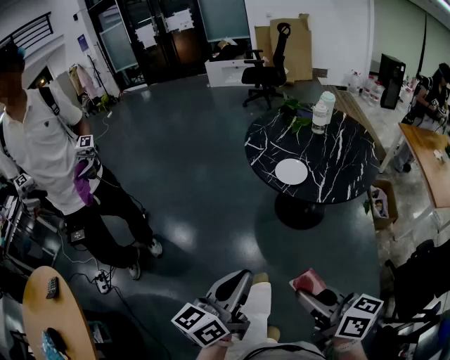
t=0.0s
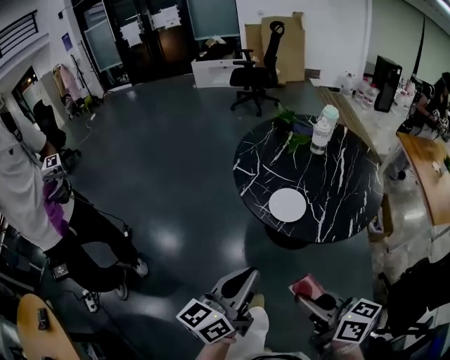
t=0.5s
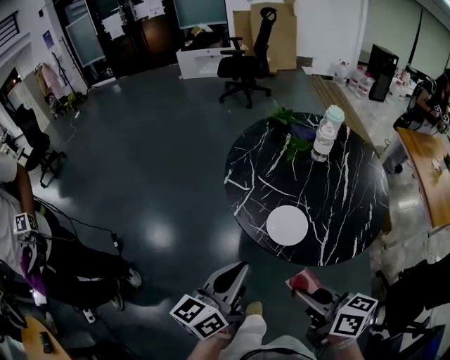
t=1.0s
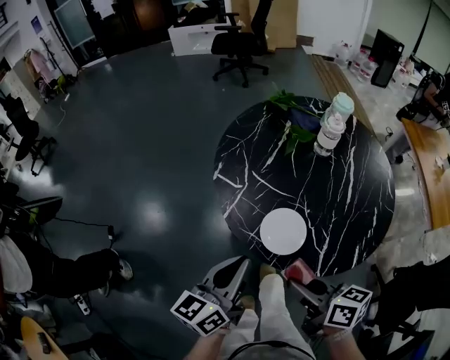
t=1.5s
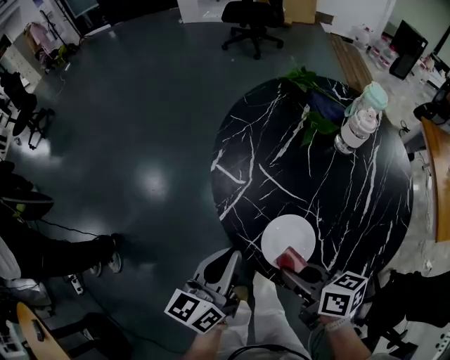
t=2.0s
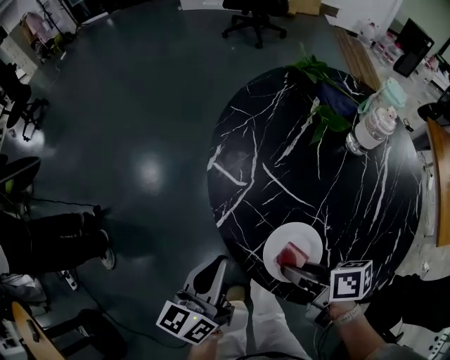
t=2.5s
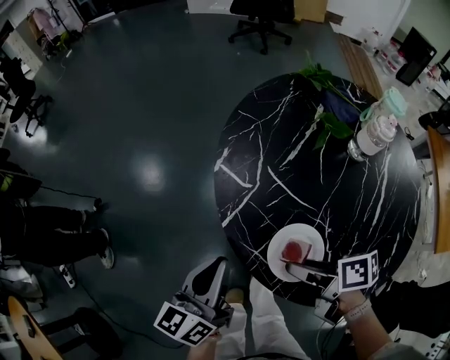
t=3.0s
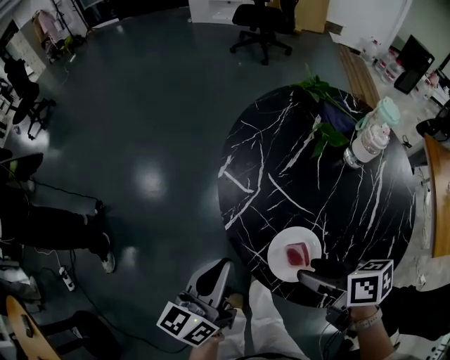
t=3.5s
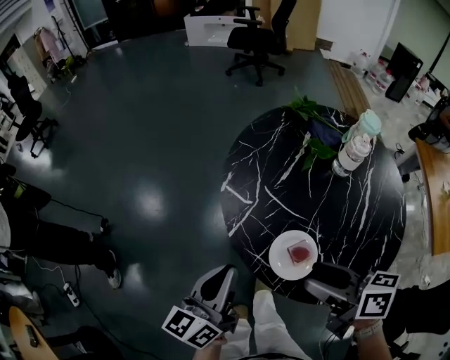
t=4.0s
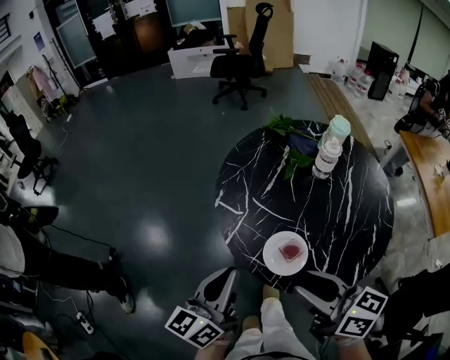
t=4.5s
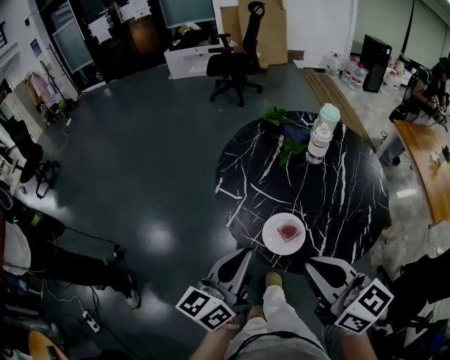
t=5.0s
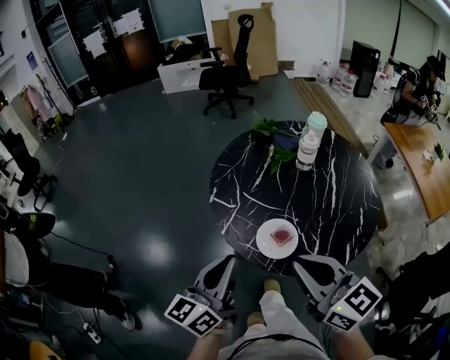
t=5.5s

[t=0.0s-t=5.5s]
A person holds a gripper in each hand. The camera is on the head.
t=0.0s to t=2.0s: Both grippers are carried forward, about 50 cm. The right gripper turns by about 20 degrees.
t=2.0s to t=3.5s: The right gripper opens its fingers.
t=3.5s to t=5.5s: The grippers both shift upward and backward by roughly 20 cm. The right gripper tips its fingers upward by roughly 30 degrees, and closes its fingers.

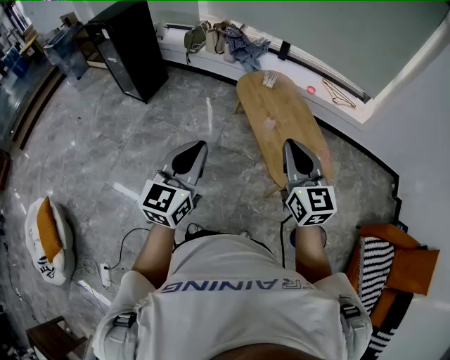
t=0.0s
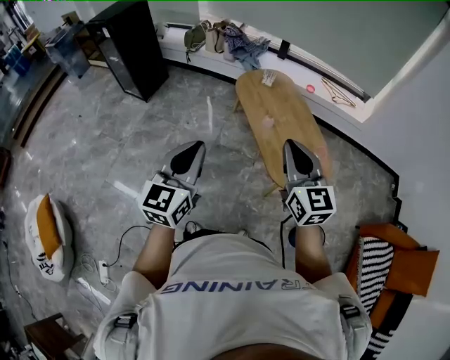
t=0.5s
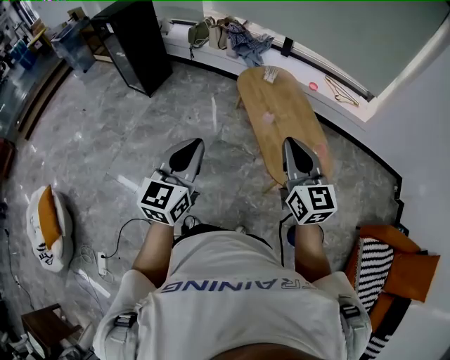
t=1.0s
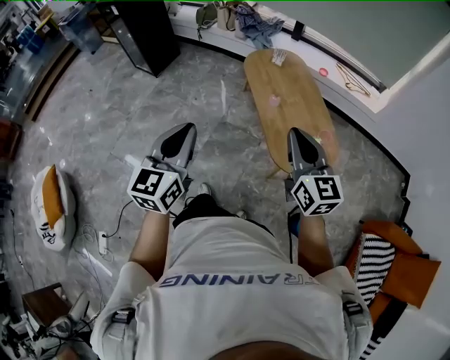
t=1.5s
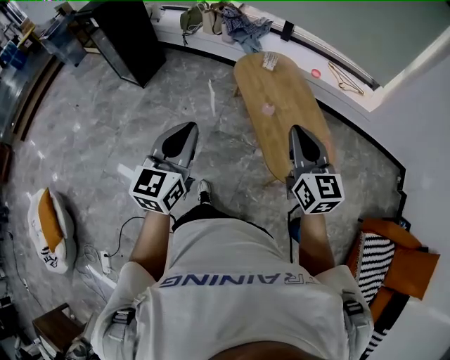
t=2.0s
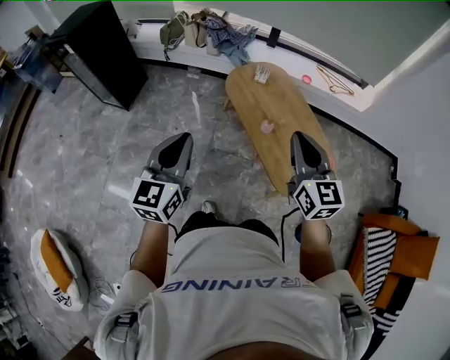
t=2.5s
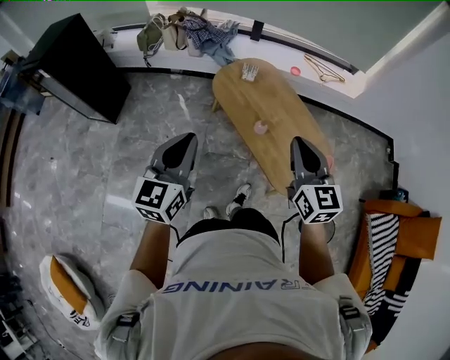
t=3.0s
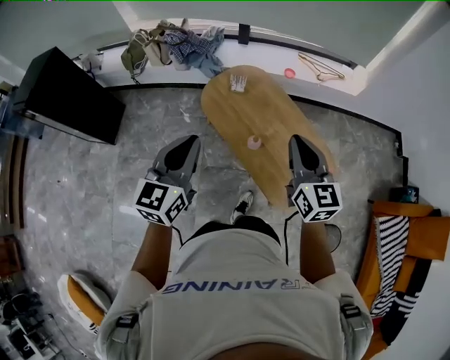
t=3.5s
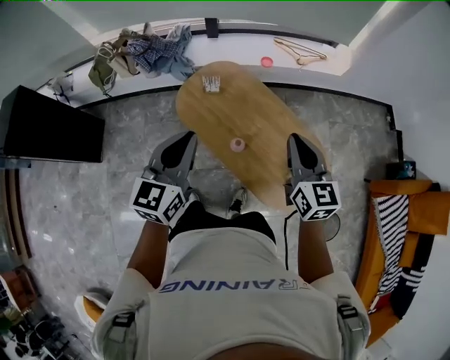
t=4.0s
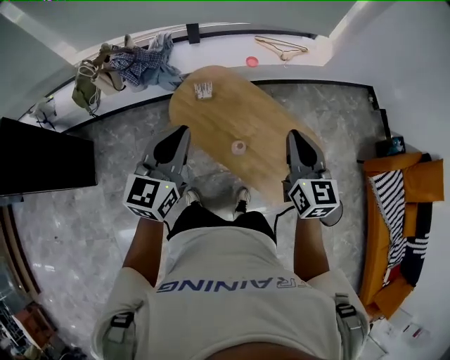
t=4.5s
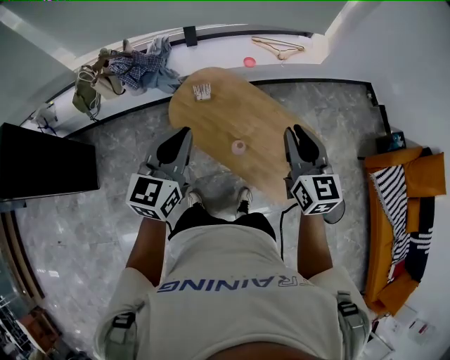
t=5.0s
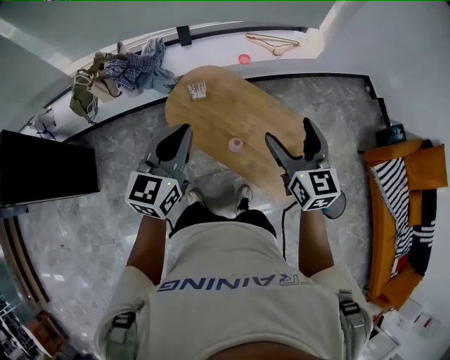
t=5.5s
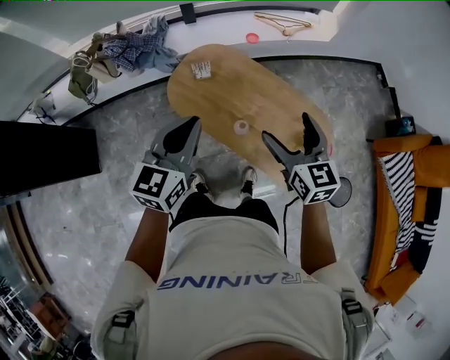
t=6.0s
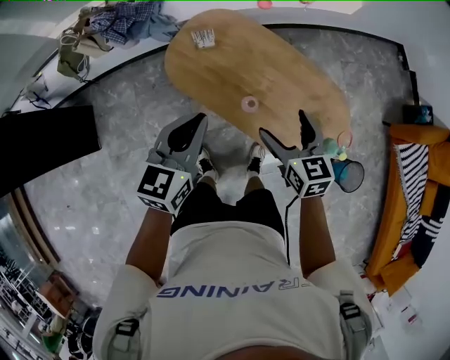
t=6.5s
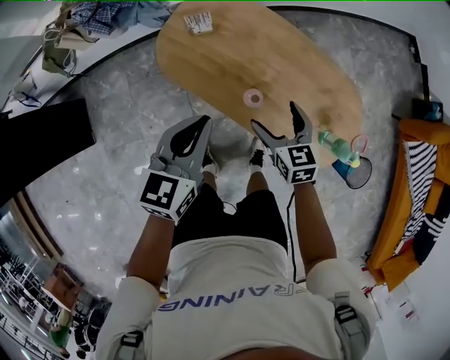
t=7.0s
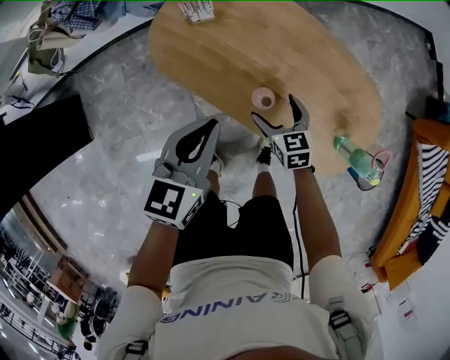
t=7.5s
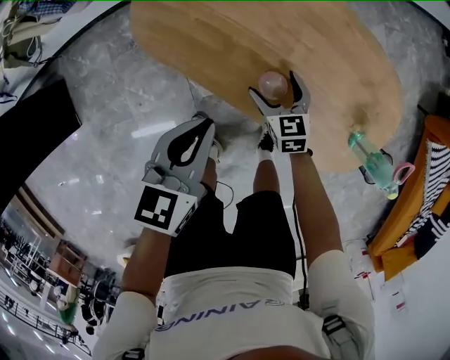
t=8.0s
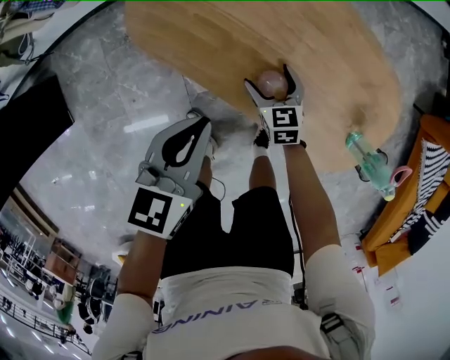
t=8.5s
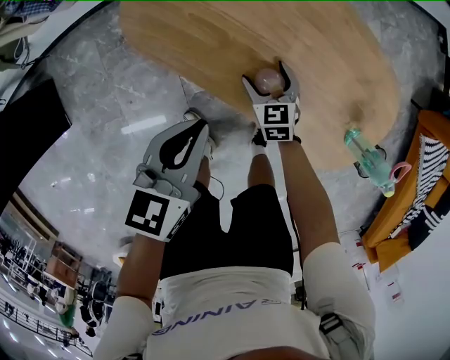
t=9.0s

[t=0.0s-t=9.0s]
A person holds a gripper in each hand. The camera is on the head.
t=0.0s to t=2.0s: The left gripper moves forward, roughly 5 cm. Meanwhile the right gripper is displaced forward and to the right by approximately 10 cm.
t=2.0s to t=4.5s: The left gripper ends up some 50 cm from where it was, and changes its angle by some 40 degrees. The right gripper ends up some 35 cm from where it was, and turns by roughly 40 degrees.
t=4.5s to t=7.0s: The right gripper is displaced downward by some 35 cm, swivels about 30 degrees, and opens its fingers, while the left gripper is displaced downward by approximately 20 cm, and turns by approximately 20 degrees.
t=7.0s to t=9.0s: The two grippers go roughly 25 cm downward.

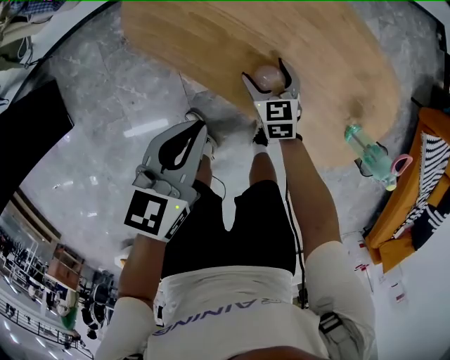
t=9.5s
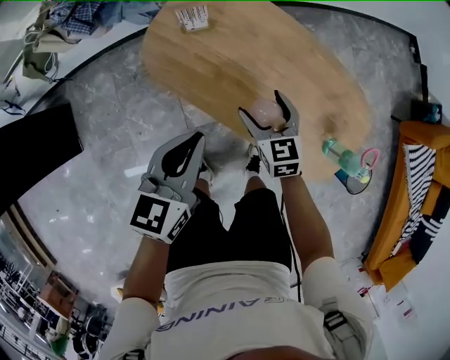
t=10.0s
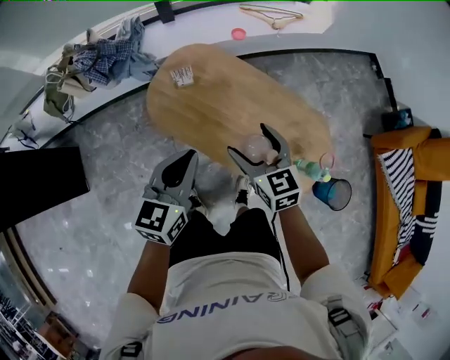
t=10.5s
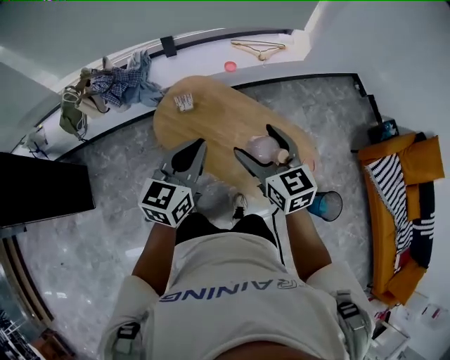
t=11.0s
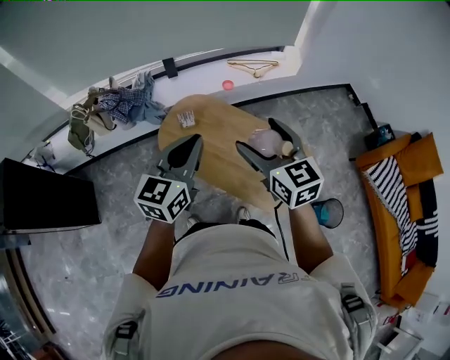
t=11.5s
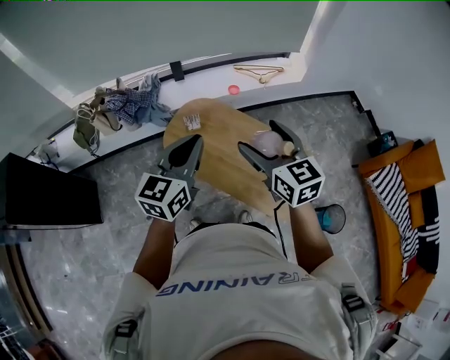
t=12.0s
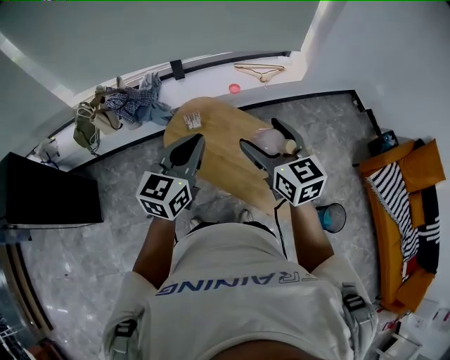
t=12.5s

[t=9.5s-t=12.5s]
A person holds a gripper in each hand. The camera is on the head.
t=9.5s to t=11.0s: The left gripper goes roughly 35 cm upward, and swivels about 30 degrees, while the right gripper heads upward, covering about 60 cm, and turns by roughly 30 degrees.
t=11.0s to t=12.5s: Both grippers travel together upward, approximately 10 cm.

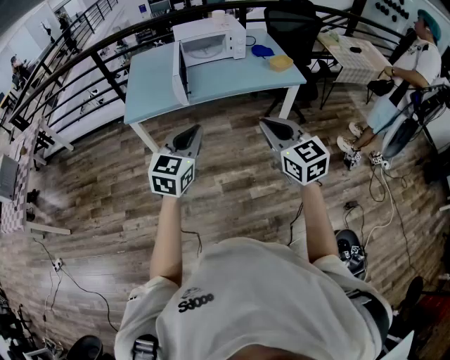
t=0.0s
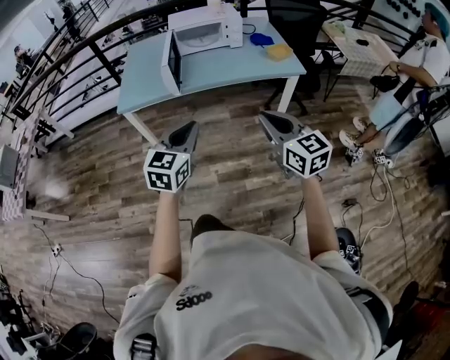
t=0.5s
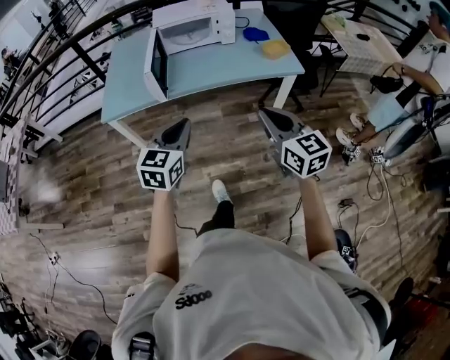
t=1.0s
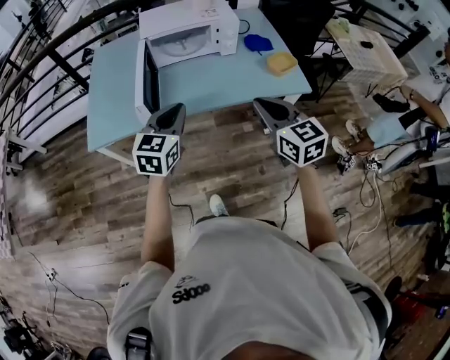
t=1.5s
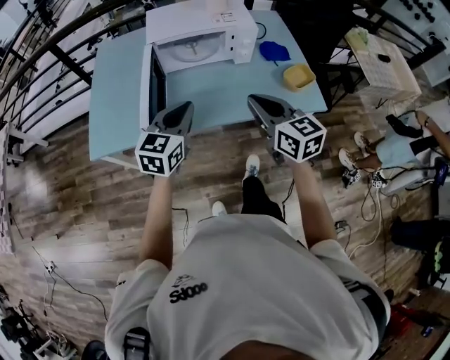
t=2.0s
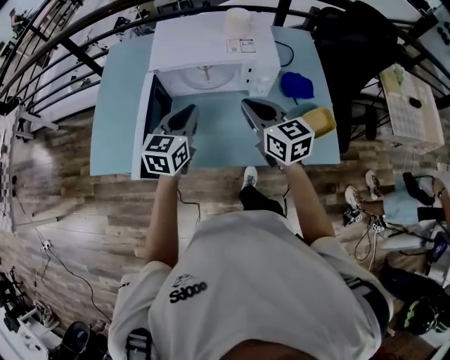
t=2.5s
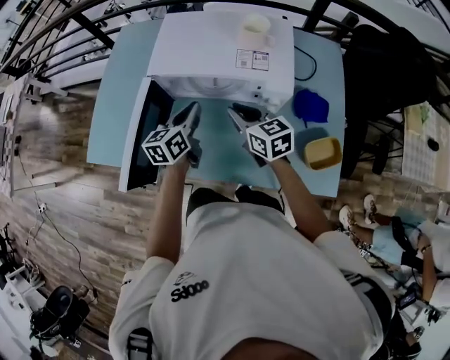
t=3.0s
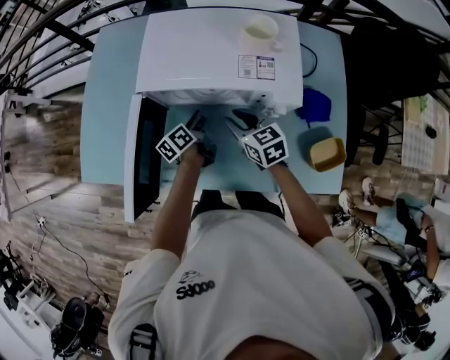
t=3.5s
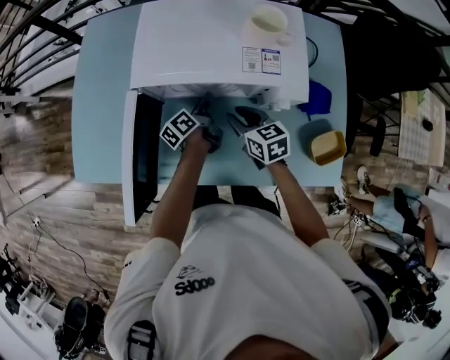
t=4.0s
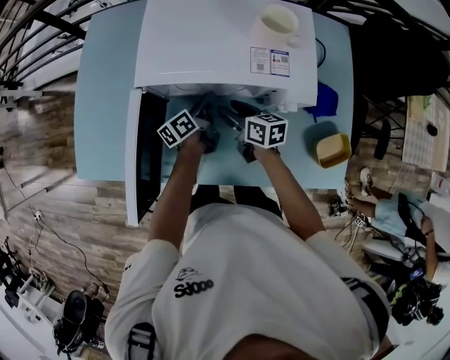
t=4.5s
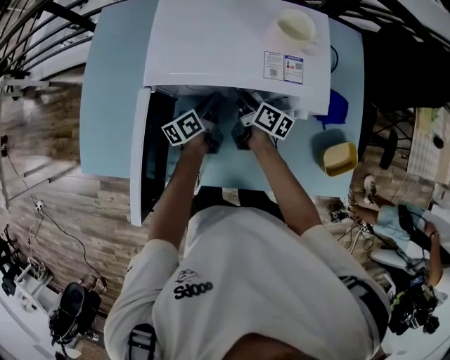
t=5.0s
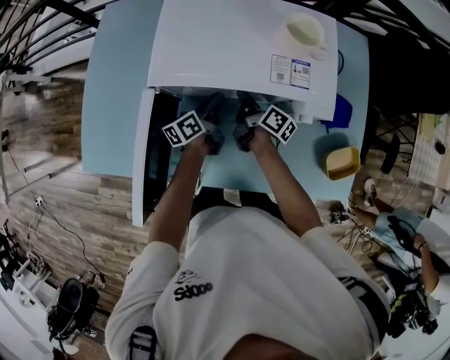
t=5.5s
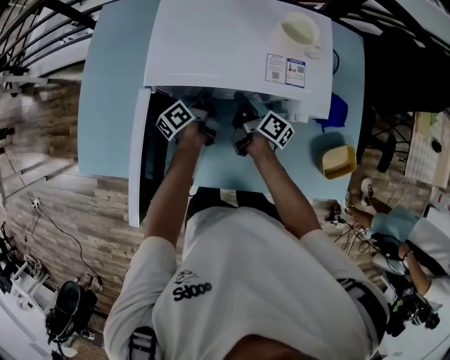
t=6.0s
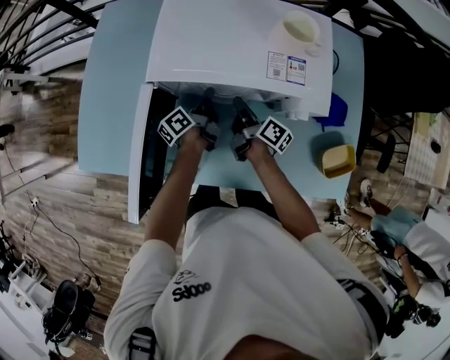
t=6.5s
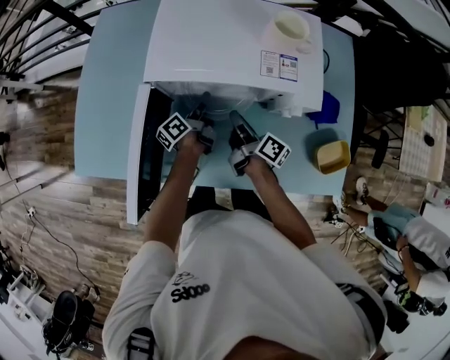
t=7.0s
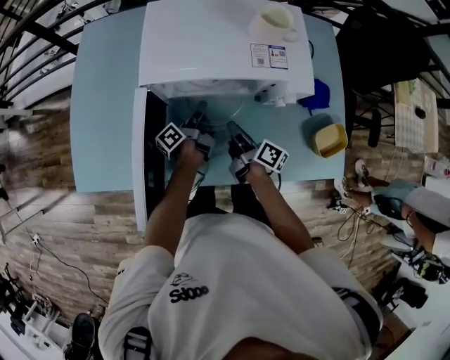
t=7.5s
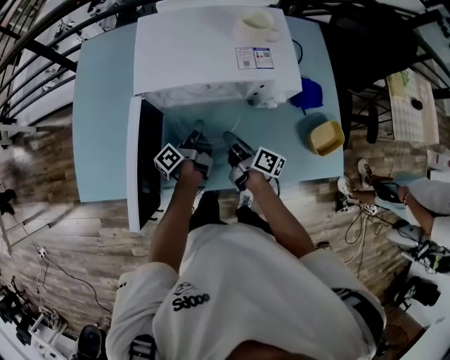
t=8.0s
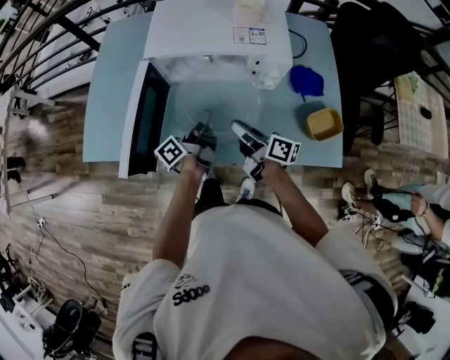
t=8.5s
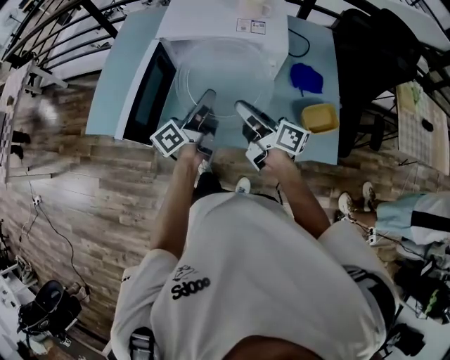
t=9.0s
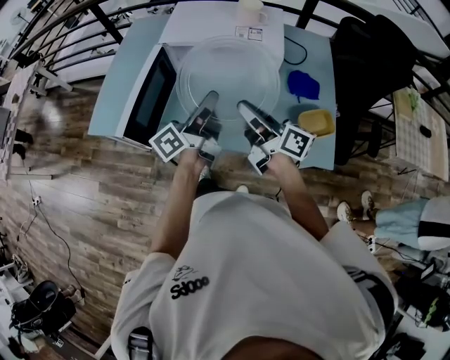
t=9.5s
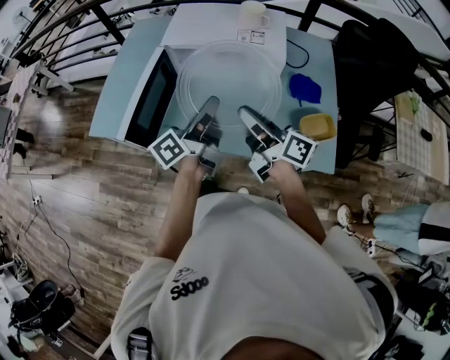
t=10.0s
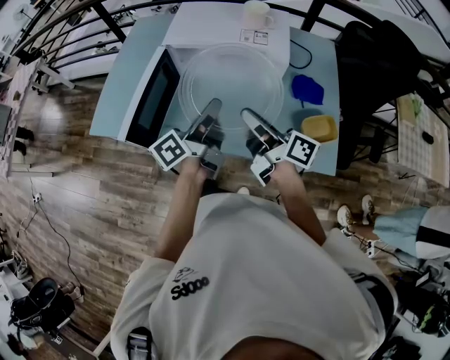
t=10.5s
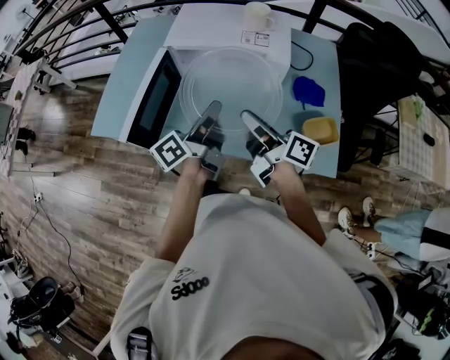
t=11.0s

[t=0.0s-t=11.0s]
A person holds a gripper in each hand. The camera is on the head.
t=0.0s to t=2.0s: The two grippers travel together, forward, about 50 cm.
t=2.0s to t=3.5s: The grippers both shift forward and downward by about 40 cm. The left gripper twists roughly 70 degrees counterclockwise, seen from behind, and opens up. Meanwhile the right gripper turns by about 30 degrees, and opens up.
t=3.5s to t=5.5s: The right gripper goes roughly 15 cm forward and downward, rotates around the line of its fingers by approximately 70 degrees, clockwise from behind, and opens, then closes once more. The left gripper closes up.
t=5.5s to t=7.5s: The right gripper shifts roughly 15 cm backward. Meanwhile the left gripper turns by some 30 degrees.
t=7.5s to t=9.0s: The right gripper goes some 25 cm upward and backward, and turns by some 30 degrees; the left gripper is displaced backward and upward by approximately 30 cm, and rotates roughly 30 degrees.
t=9.0s to t=11.0s: The left gripper changes place by some 5 cm. The right gripper shifts by roughly 5 cm.
